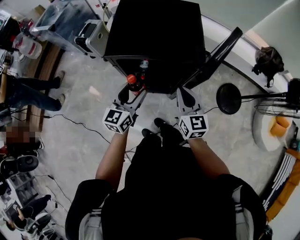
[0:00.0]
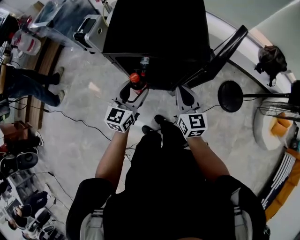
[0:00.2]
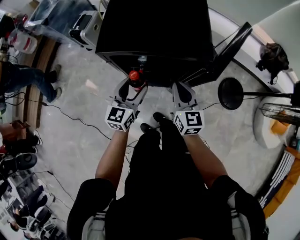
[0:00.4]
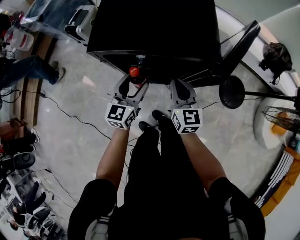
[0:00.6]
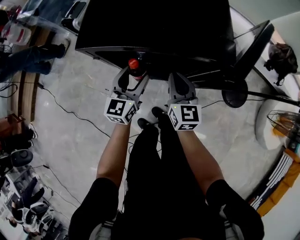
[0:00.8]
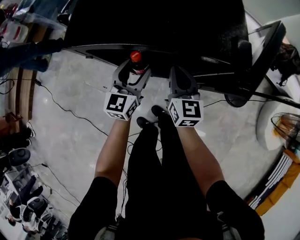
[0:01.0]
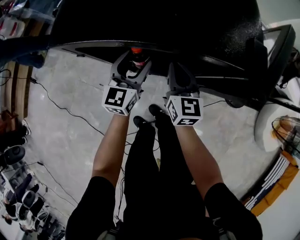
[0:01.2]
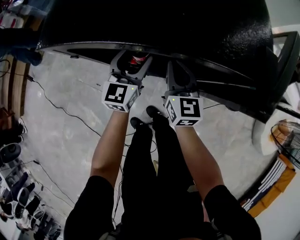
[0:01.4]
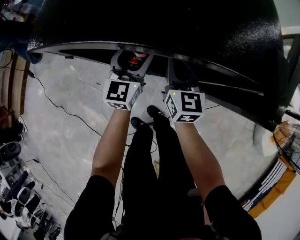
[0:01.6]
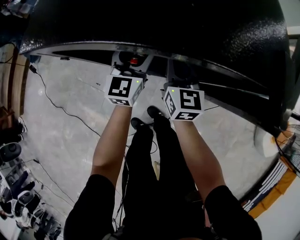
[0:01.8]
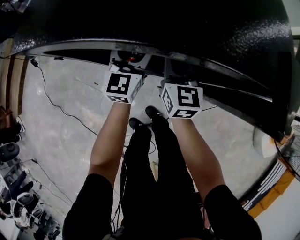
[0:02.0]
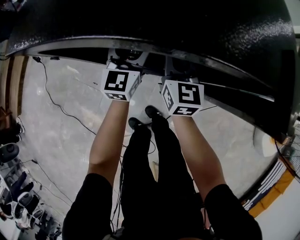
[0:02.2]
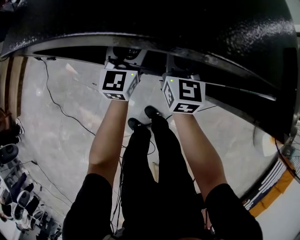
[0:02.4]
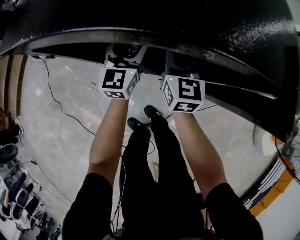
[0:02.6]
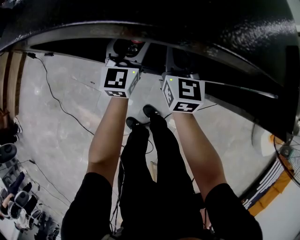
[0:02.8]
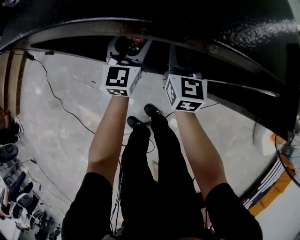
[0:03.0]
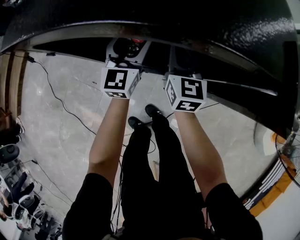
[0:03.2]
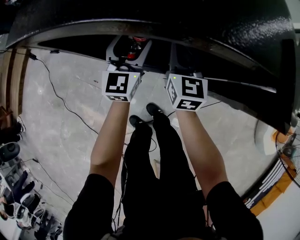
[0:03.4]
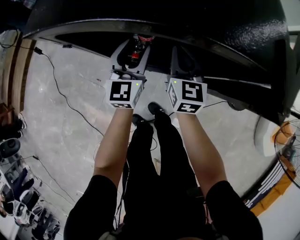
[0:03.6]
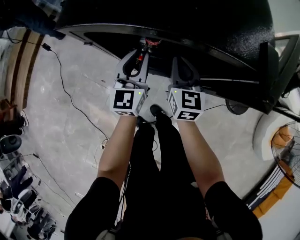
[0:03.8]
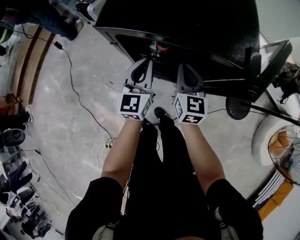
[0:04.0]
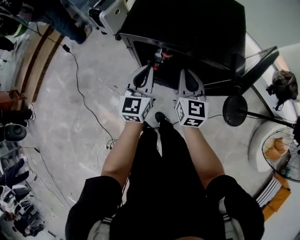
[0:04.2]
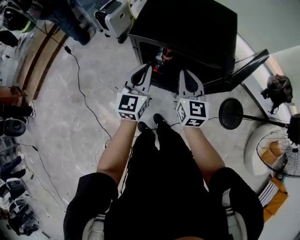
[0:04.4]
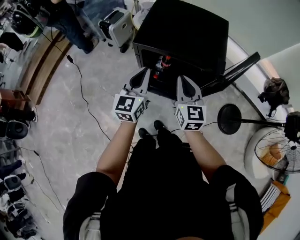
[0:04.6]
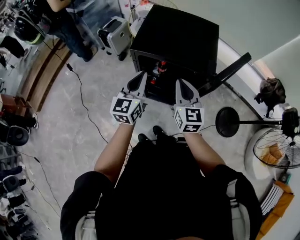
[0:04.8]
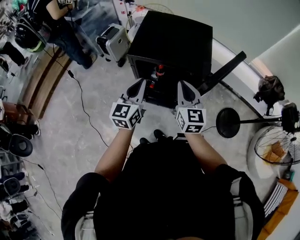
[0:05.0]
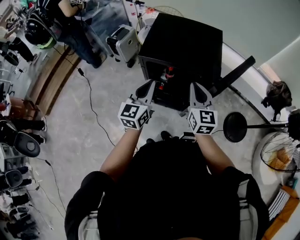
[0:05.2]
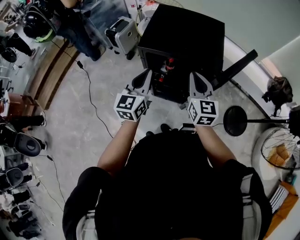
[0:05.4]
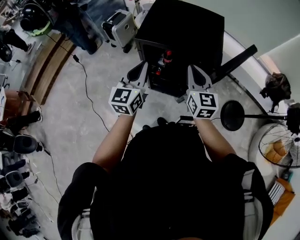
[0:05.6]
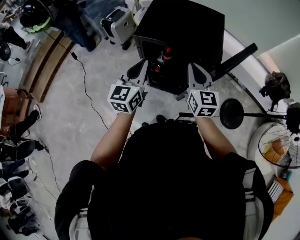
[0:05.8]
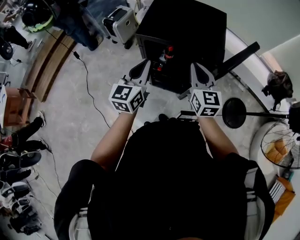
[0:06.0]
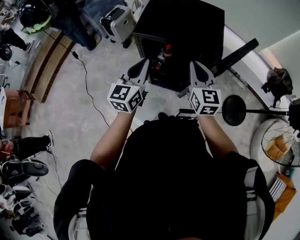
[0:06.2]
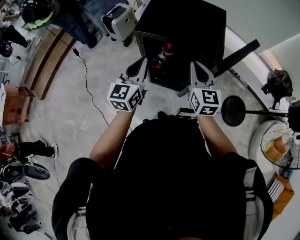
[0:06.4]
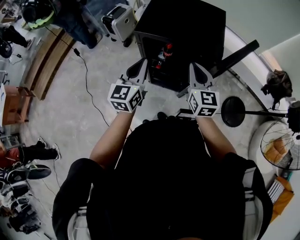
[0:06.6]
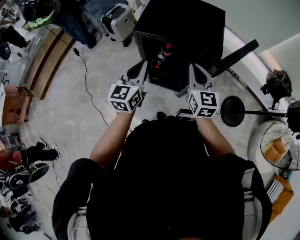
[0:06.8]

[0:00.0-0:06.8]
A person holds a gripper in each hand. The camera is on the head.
0:00.0 to 0:01.4: Both grippers travel together downward and forward, approximately 25 cm.
0:01.4 to 0:02.8: The left gripper moves some 5 cm; the right gripper moves approximately 5 cm.
0:02.8 to 0:04.0: The grippers both shift upward and backward by roughly 15 cm. The left gripper closes its fingers.
0:04.0 to 0:05.4: The right gripper heads upward, covering roughly 25 cm. The left gripper is displaced upward and backward by some 25 cm.
0:05.4 to 0:06.8: The grippers stay close to where they were, moving slightly.

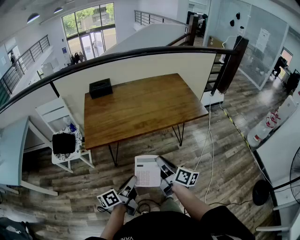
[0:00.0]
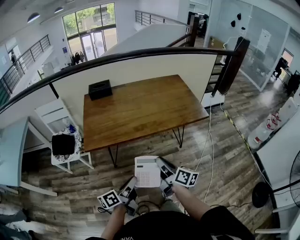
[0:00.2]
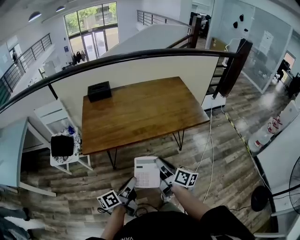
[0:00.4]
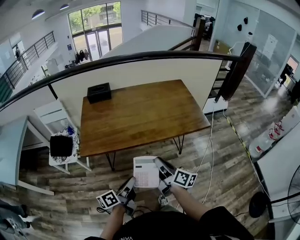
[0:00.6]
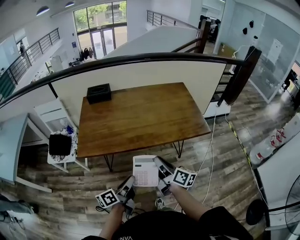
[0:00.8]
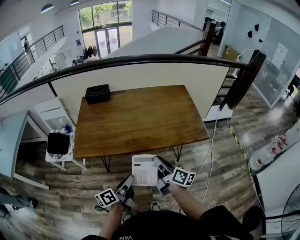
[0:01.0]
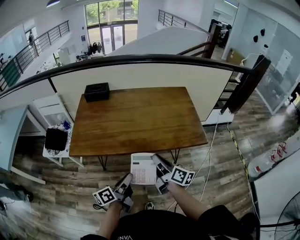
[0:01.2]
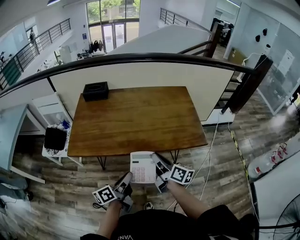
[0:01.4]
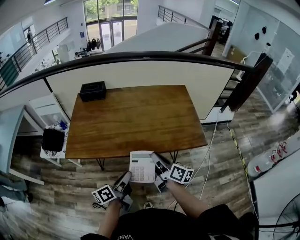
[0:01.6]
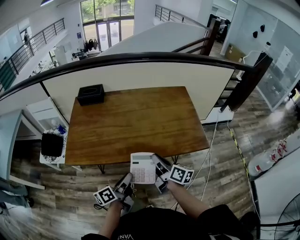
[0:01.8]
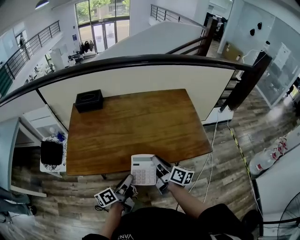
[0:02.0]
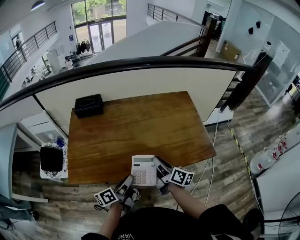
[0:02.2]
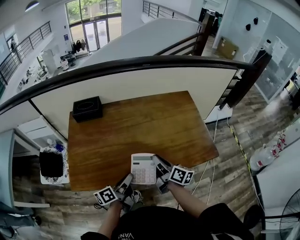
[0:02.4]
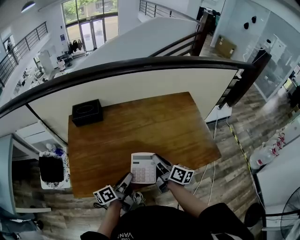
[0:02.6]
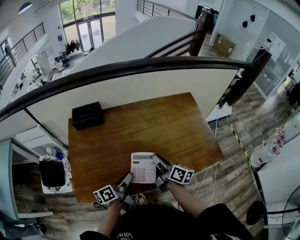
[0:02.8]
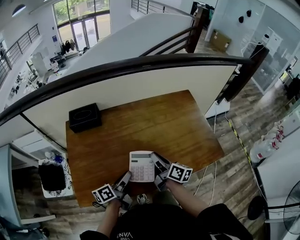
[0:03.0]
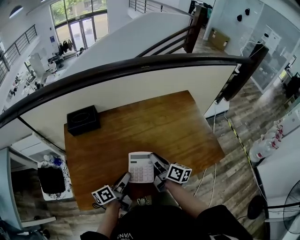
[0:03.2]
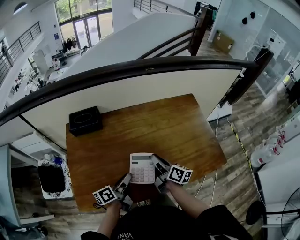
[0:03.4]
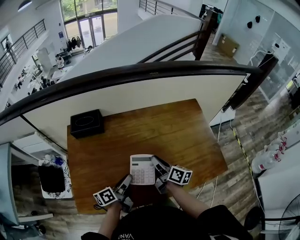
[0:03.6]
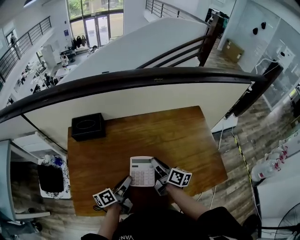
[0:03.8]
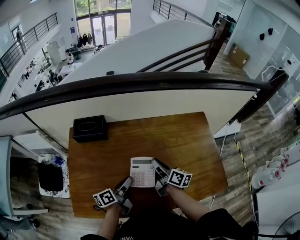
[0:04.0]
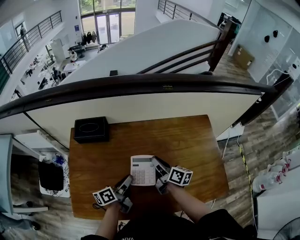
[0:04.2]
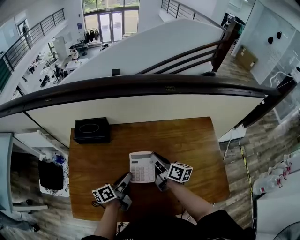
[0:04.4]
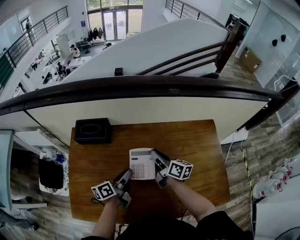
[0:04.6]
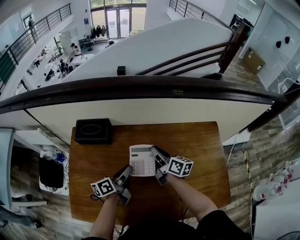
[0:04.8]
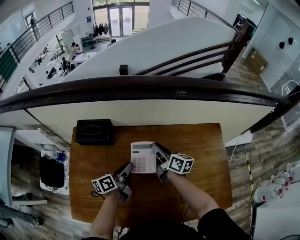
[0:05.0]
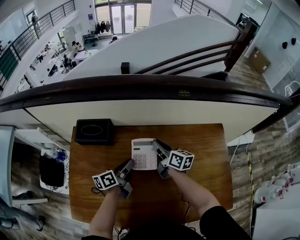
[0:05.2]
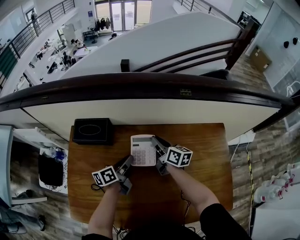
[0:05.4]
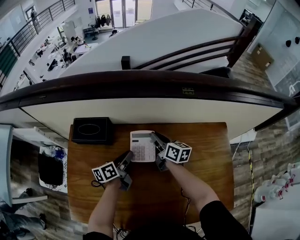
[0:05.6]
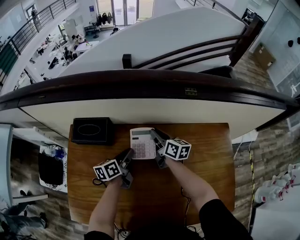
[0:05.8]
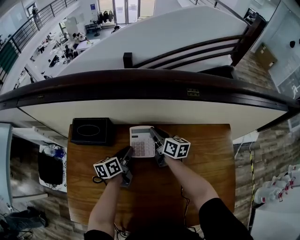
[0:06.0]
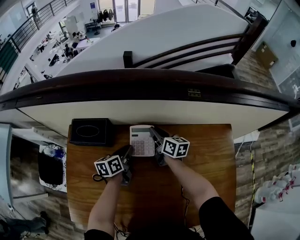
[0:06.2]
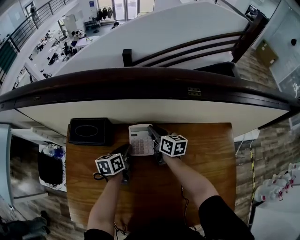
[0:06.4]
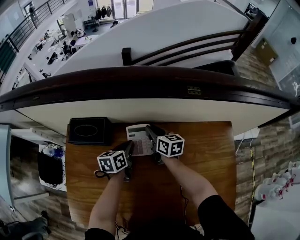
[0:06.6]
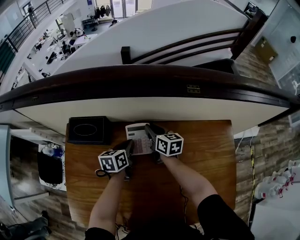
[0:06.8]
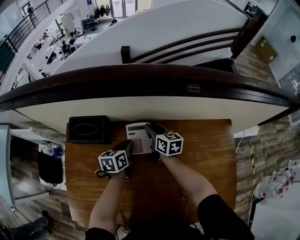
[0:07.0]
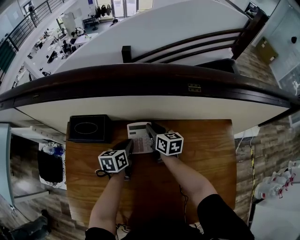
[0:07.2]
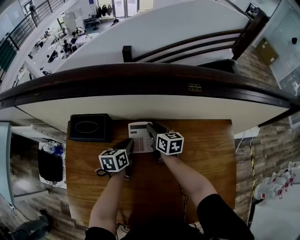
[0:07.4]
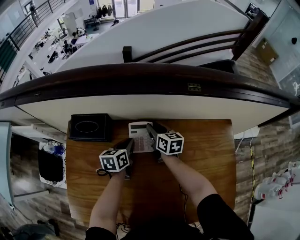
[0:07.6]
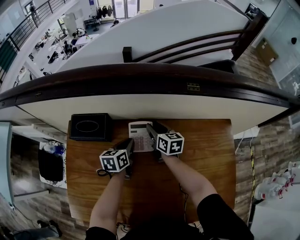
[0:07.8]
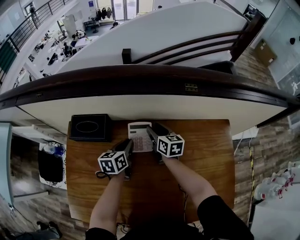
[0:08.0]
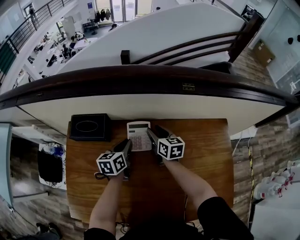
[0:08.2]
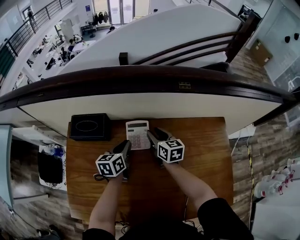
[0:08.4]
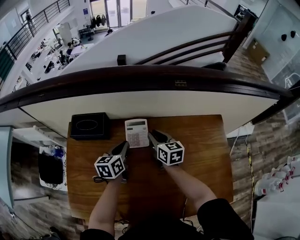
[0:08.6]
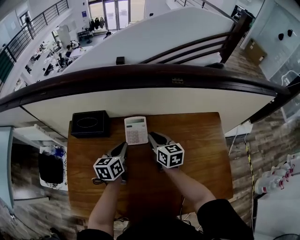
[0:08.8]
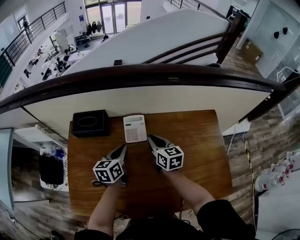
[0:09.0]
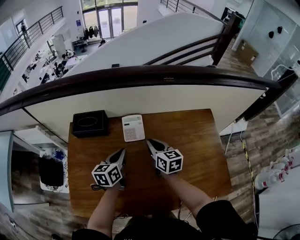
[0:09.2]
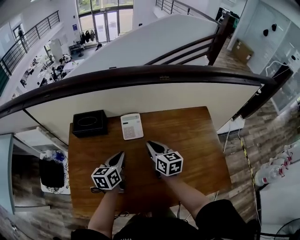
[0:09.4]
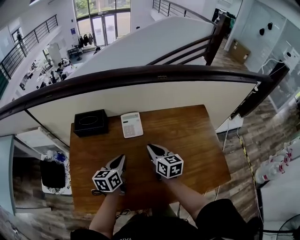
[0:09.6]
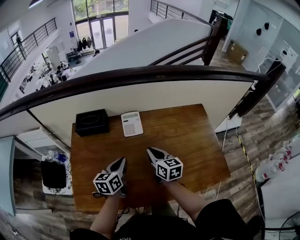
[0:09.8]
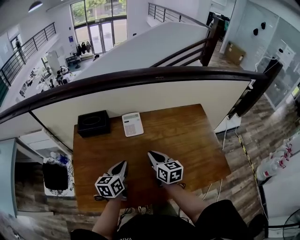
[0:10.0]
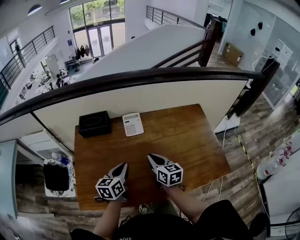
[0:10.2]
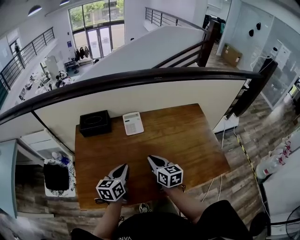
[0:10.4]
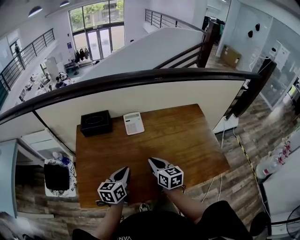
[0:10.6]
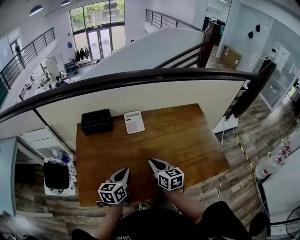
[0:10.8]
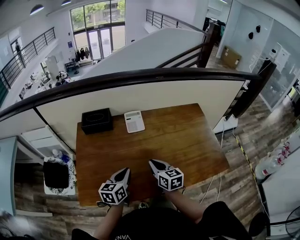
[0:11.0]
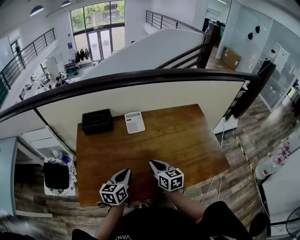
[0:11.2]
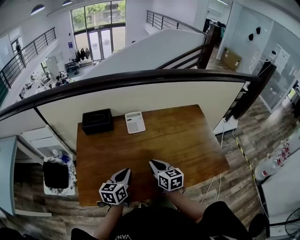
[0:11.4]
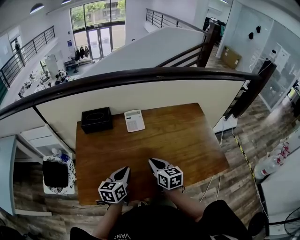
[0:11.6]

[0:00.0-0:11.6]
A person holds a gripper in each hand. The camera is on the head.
0:00.0 to 0:01.4: The two grippers go some 20 cm forward and to the right.
0:01.4 to 0:02.8: Both grippers travel together forward and to the left, approximately 25 cm.
0:02.8 to 0:04.4: Both grippers move forward, roughly 20 cm.
0:04.4 to 0:05.8: The grippers both shift forward by approximately 15 cm.
0:05.8 to 0:07.2: The left gripper swivels about 20 degrees.
0:07.2 to 0:08.8: The left gripper shifts some 10 cm upward and backward, while the right gripper heads backward and upward, covering some 15 cm, and opens, then closes again.
0:08.8 to 0:10.2: The two grippers go roughly 20 cm backward.
0:10.2 to 0:11.6: The right gripper moves roughly 5 cm. Meanwhile the left gripper ends up about 5 cm from where it was.

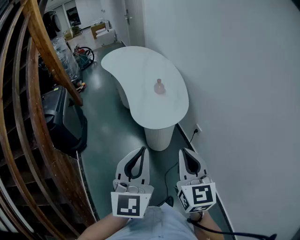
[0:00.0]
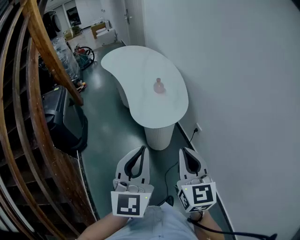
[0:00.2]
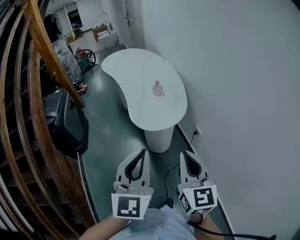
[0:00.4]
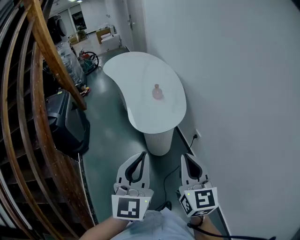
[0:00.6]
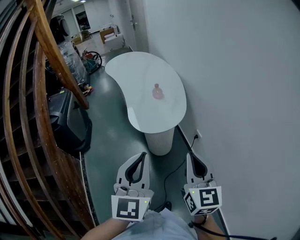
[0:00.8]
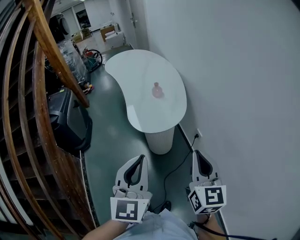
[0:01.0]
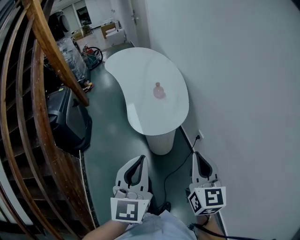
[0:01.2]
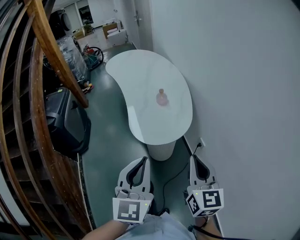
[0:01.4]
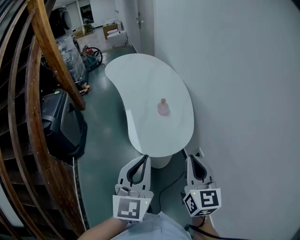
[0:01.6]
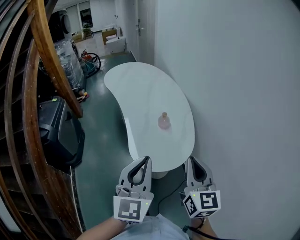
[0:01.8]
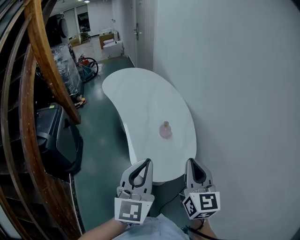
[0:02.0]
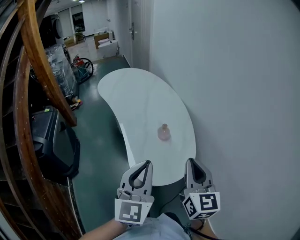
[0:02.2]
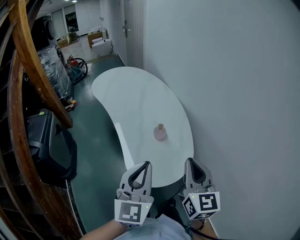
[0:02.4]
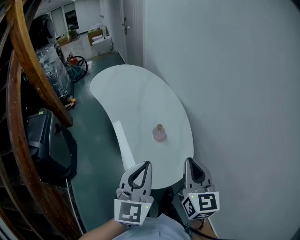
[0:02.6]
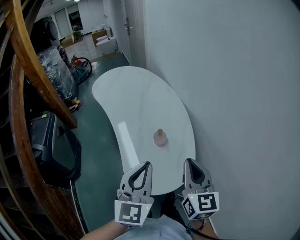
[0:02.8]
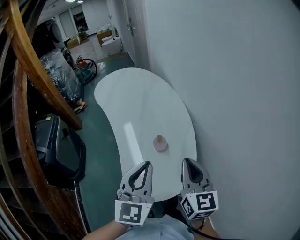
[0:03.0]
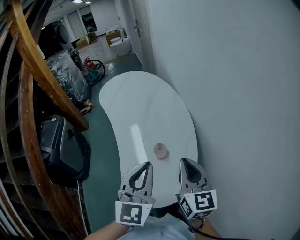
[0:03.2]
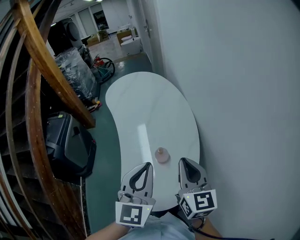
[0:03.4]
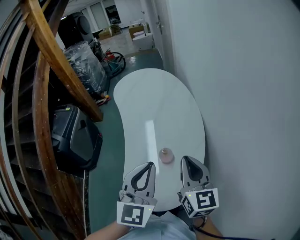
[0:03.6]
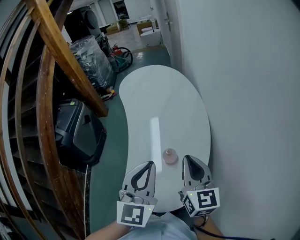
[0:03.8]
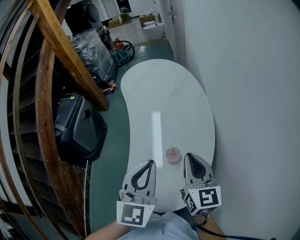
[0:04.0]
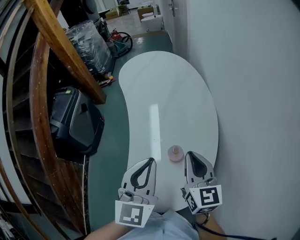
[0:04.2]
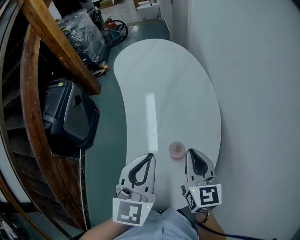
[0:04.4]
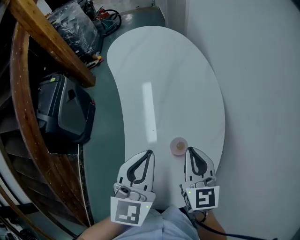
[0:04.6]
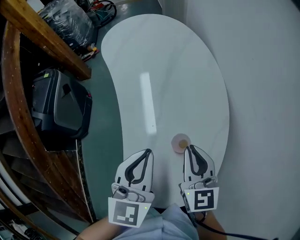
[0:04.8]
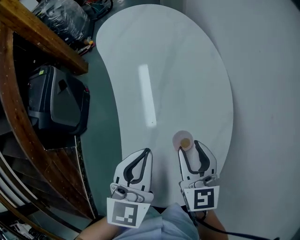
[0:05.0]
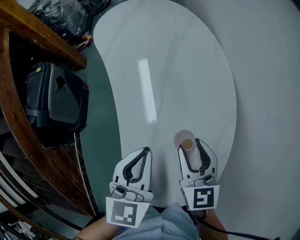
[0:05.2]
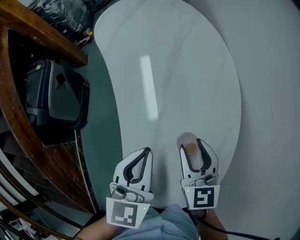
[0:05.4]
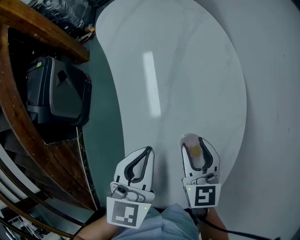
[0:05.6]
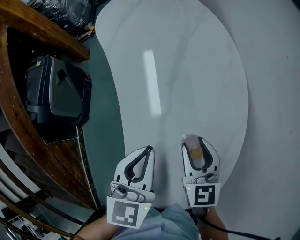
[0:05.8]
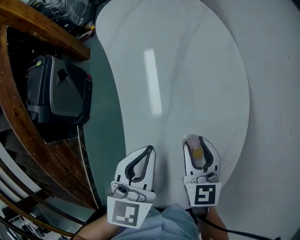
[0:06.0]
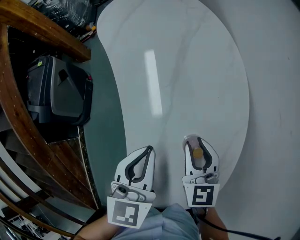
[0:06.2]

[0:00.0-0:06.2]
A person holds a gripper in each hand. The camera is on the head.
0:00.0 to 0:01.6: The two grippers go approximately 15 cm forward.
0:01.6 to 0:03.2: Both grippers move forward, roughly 20 cm.
0:03.2 to 0:04.6: Both grippers travel together forward and downward, some 10 cm.
0:04.6 to 0:06.2: Both grippers travel together downward, approximately 5 cm. The right gripper opens its fingers.
